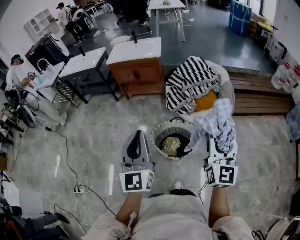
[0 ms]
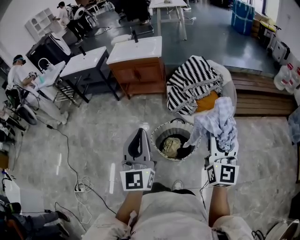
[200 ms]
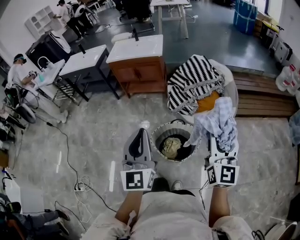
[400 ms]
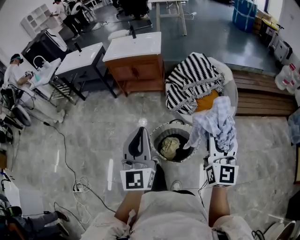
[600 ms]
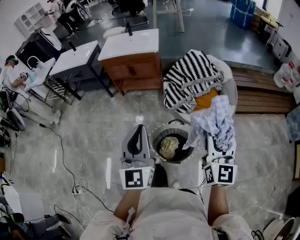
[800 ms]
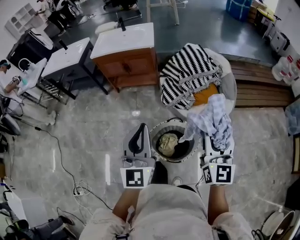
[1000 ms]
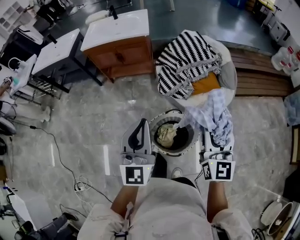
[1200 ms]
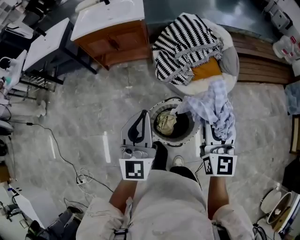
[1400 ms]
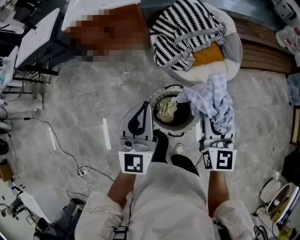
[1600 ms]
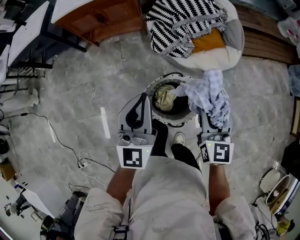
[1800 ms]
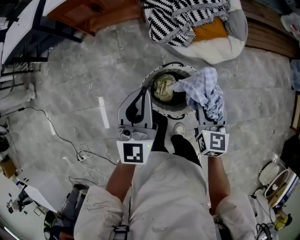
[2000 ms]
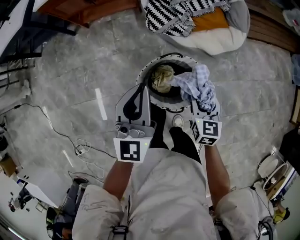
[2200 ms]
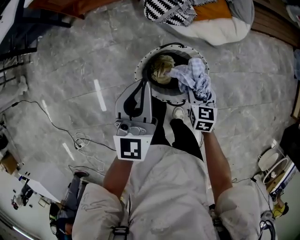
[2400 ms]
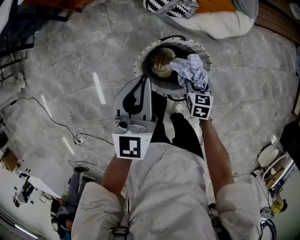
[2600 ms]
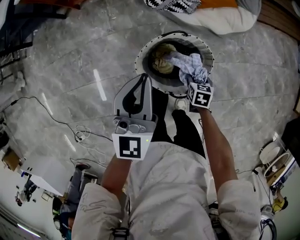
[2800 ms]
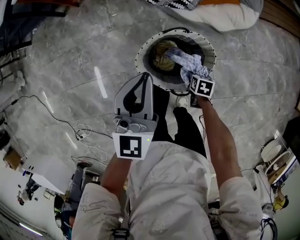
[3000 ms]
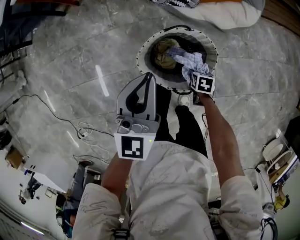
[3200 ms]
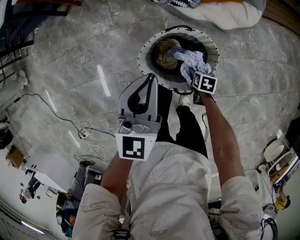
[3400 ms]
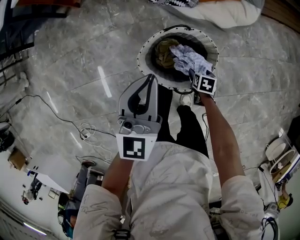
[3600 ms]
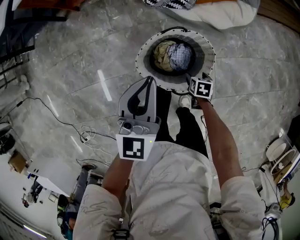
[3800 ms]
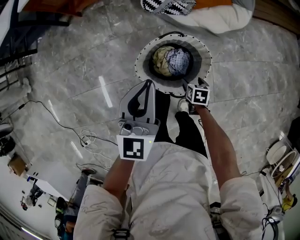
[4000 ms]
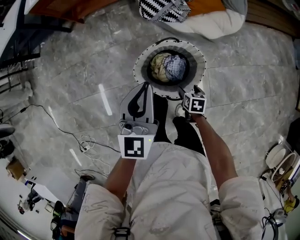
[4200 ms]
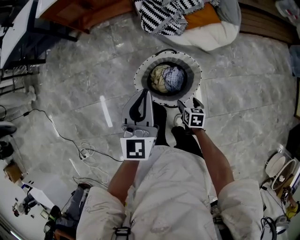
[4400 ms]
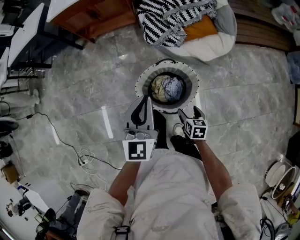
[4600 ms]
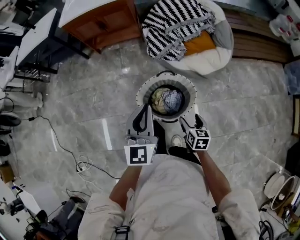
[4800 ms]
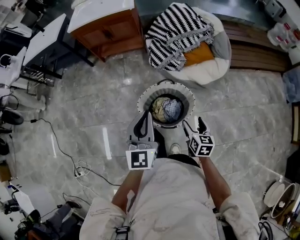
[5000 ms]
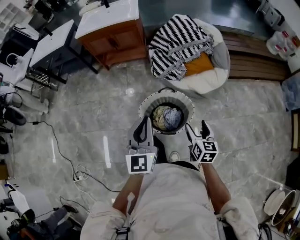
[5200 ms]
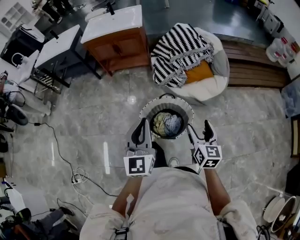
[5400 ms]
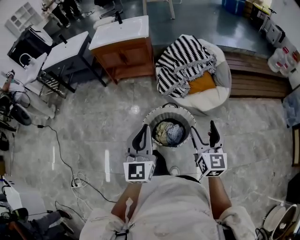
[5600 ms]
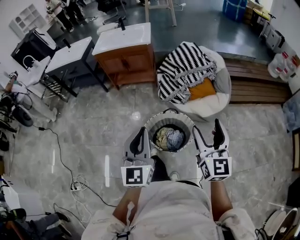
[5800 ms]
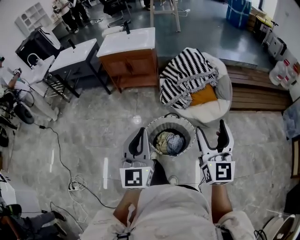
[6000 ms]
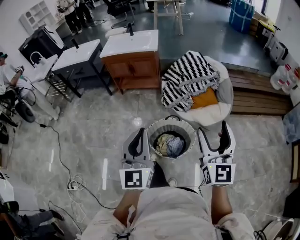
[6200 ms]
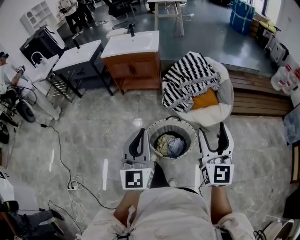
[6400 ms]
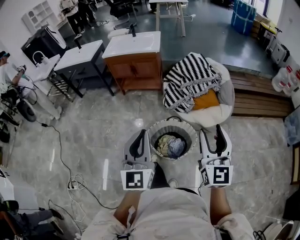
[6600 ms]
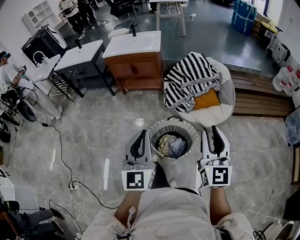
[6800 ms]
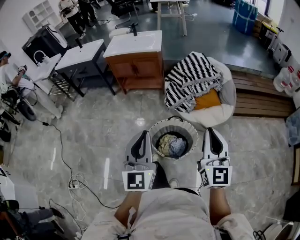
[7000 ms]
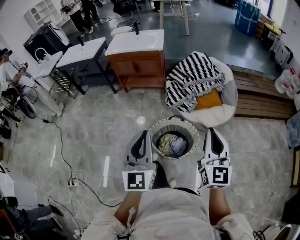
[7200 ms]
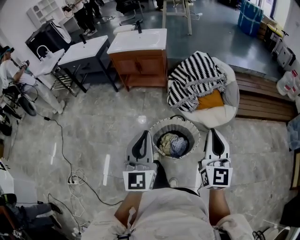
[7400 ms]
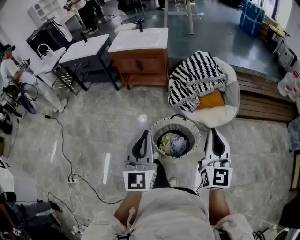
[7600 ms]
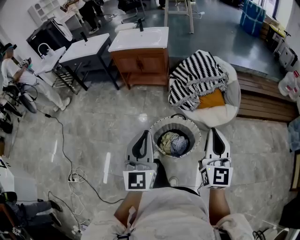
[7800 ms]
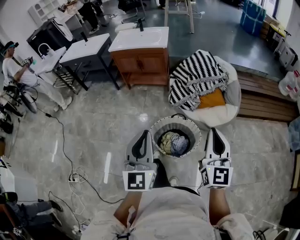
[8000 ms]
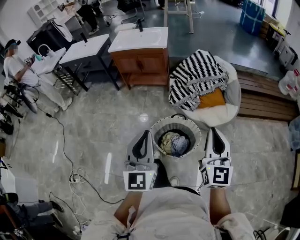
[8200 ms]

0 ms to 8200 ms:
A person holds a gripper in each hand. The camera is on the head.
0 ms to 1600 ms: The grippers both shift forward and downward by about 30 cm.
1600 ms to 3200 ms: The right gripper heads downward, covering approximately 50 cm, and tilts its fingers approximately 70 degrees downward. Meanwhile the left gripper is displaced downward by about 20 cm.
3200 ms to 5000 ms: The right gripper moves upward, some 30 cm, and points its fingers approximately 40 degrees further upward, while the left gripper shifts by approximately 20 cm.
5000 ms to 6600 ms: The left gripper moves upward and backward, approximately 20 cm. Meanwhile the right gripper moves upward, approximately 35 cm, and tilts its fingers some 40 degrees upward.
6600 ms to 8200 ms: The right gripper closes up.

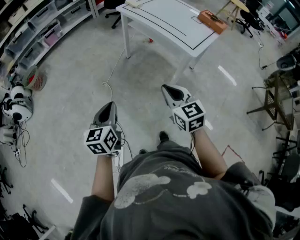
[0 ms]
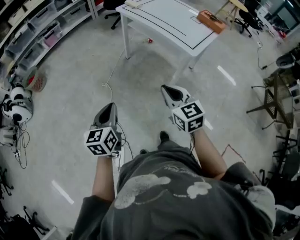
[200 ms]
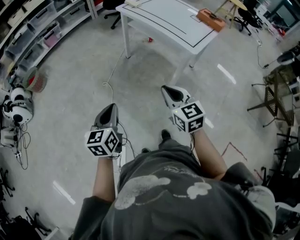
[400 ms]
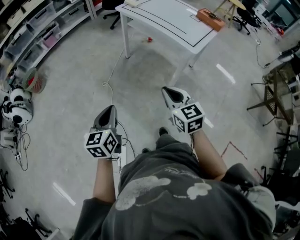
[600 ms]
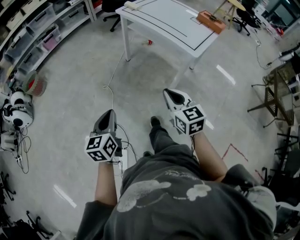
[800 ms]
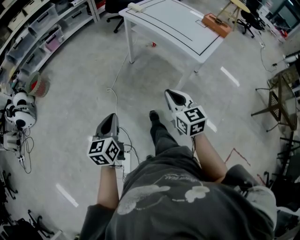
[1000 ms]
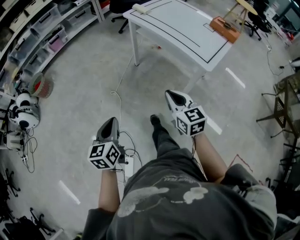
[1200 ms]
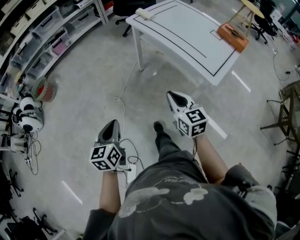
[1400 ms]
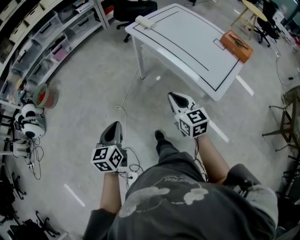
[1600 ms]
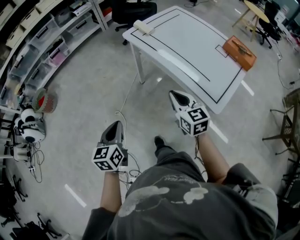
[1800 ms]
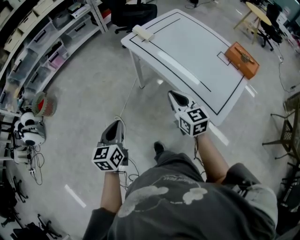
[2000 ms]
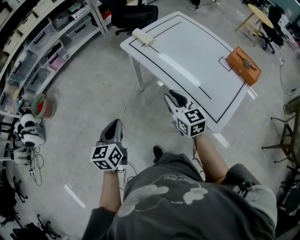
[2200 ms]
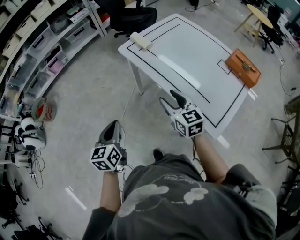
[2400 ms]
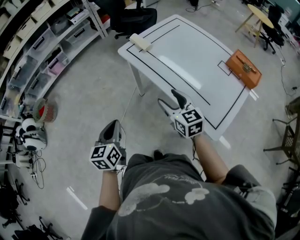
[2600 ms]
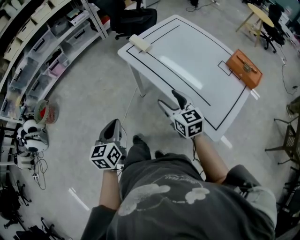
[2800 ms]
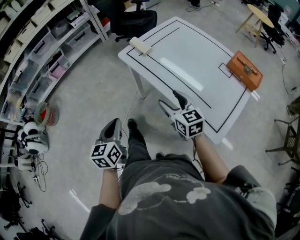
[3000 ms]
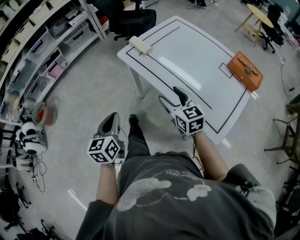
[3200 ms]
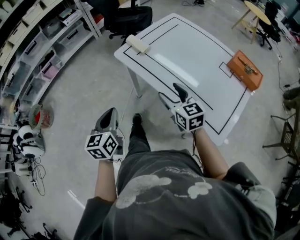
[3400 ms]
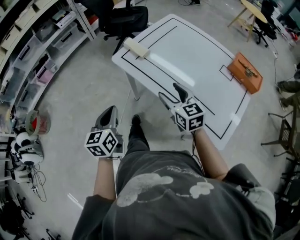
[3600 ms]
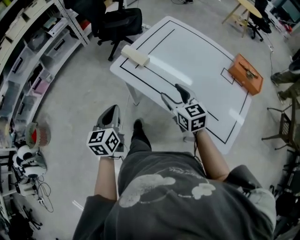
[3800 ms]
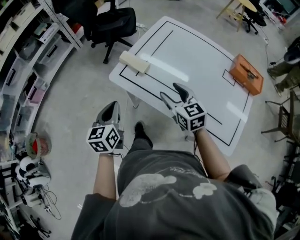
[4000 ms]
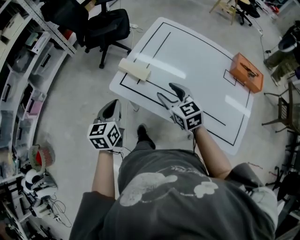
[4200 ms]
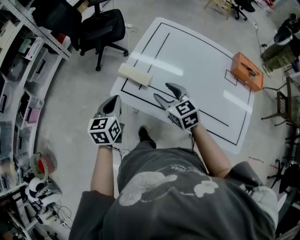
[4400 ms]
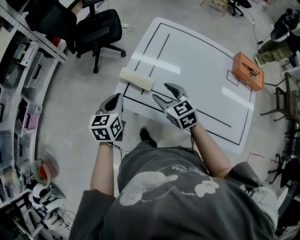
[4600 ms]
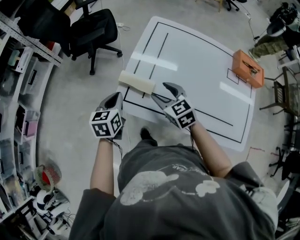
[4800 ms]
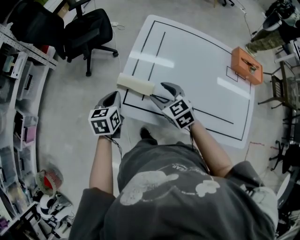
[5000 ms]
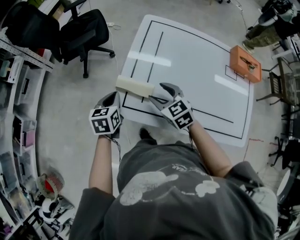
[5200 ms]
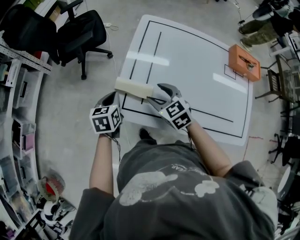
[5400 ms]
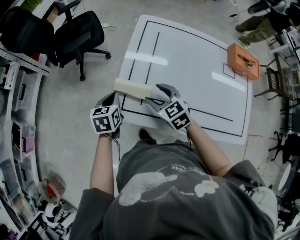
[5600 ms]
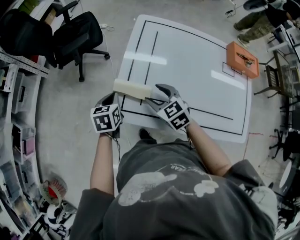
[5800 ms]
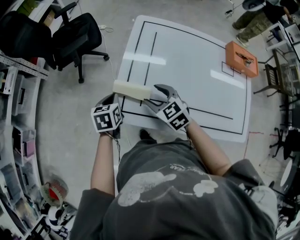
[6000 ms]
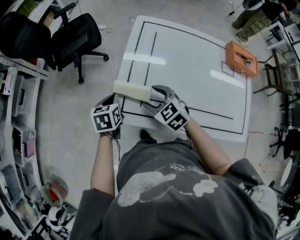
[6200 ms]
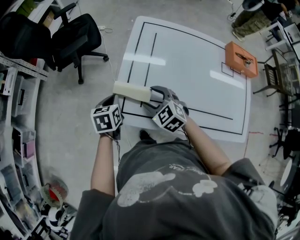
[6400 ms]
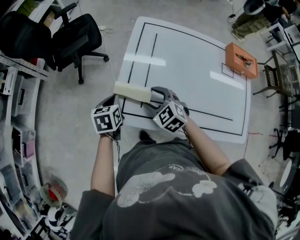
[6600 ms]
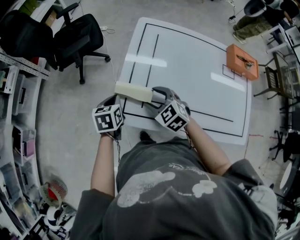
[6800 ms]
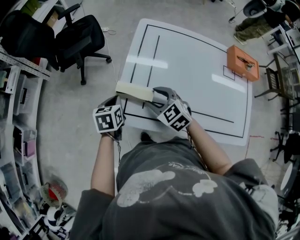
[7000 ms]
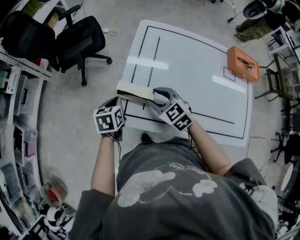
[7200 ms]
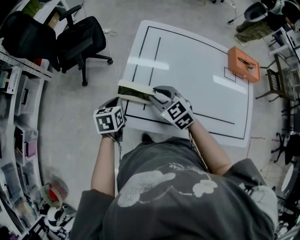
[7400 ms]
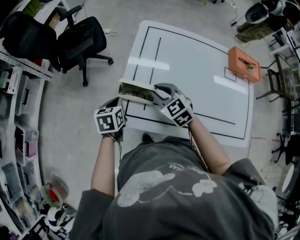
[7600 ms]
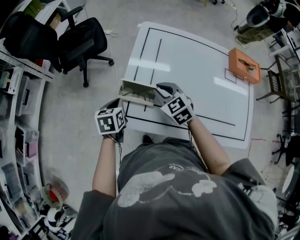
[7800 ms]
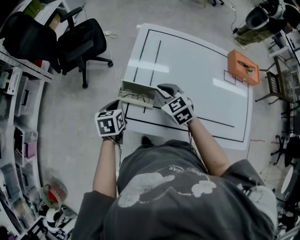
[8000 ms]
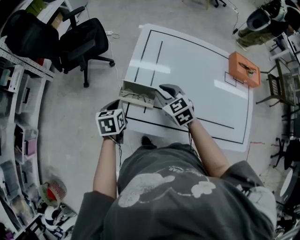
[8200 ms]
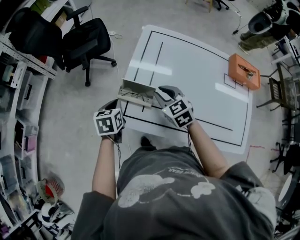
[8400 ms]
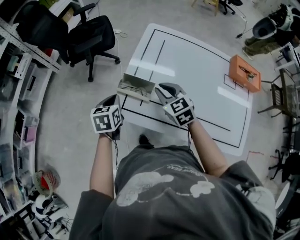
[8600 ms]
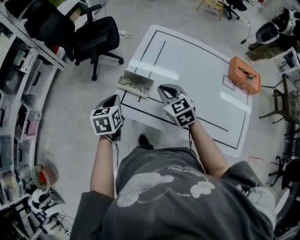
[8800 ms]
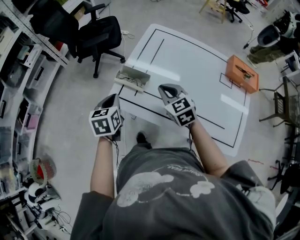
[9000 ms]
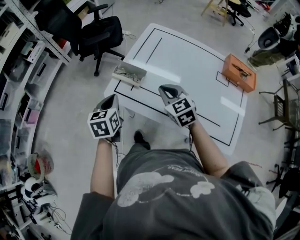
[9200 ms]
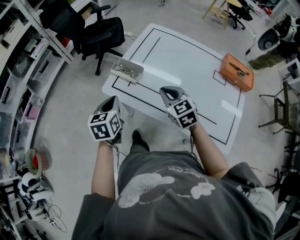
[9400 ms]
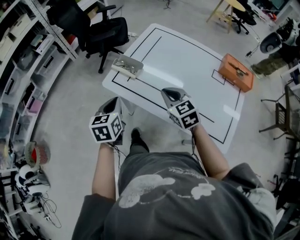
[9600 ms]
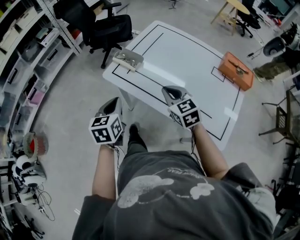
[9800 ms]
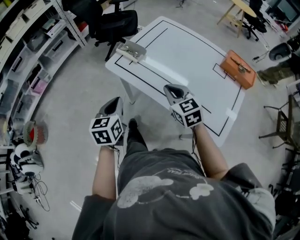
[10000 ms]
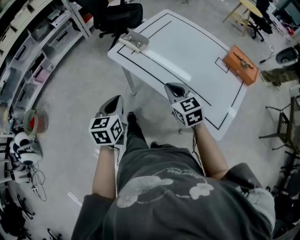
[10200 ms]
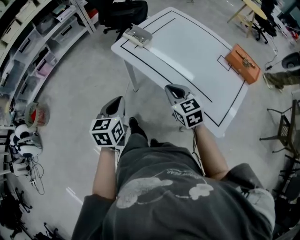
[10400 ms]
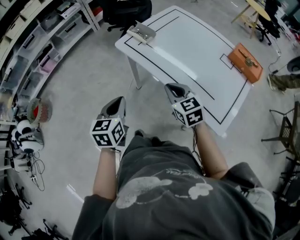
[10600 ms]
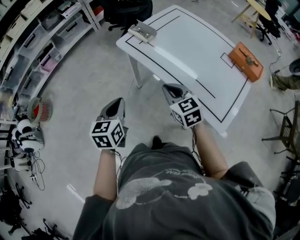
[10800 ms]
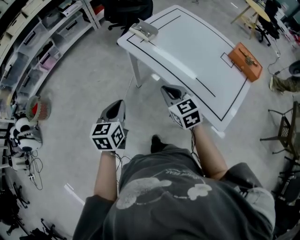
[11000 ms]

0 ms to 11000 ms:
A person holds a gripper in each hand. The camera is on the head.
0 ms to 1600 ms: Both grippers move forward, roughly 25 cm.
1600 ms to 3200 ms: The grippers both shift forward by approximately 25 cm. The right gripper opens.
3200 ms to 4800 ms: The right gripper shifts by approximately 30 cm, and rotates about 20 degrees, while the left gripper changes place by some 50 cm, and turns by some 30 degrees.
4800 ms to 6200 ms: The left gripper travels downward and forward by roughly 10 cm.
6200 ms to 7800 ms: The right gripper changes place by about 5 cm, and closes.
7800 ms to 9400 ms: The right gripper is displaced backward, to the right and upward by about 20 cm. Meanwhile the left gripper moves backward and upward, approximately 20 cm, and changes its angle by about 20 degrees.
9400 ms to 11000 ms: Both grippers move backward, approximately 25 cm.

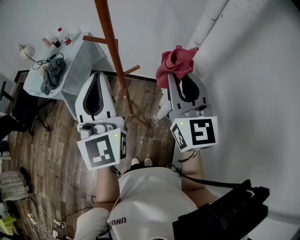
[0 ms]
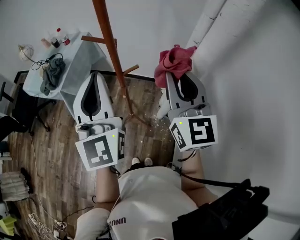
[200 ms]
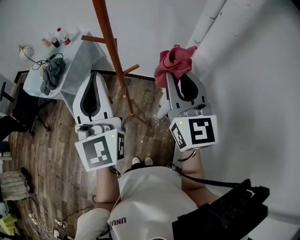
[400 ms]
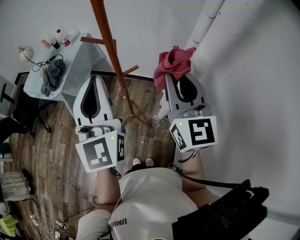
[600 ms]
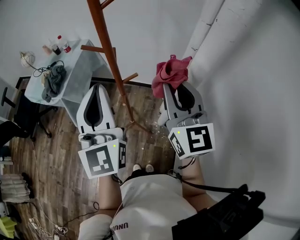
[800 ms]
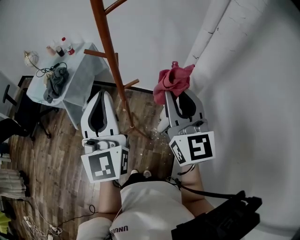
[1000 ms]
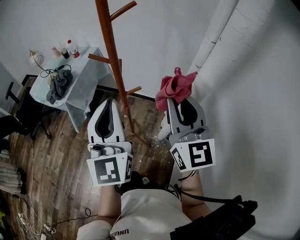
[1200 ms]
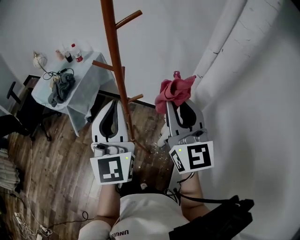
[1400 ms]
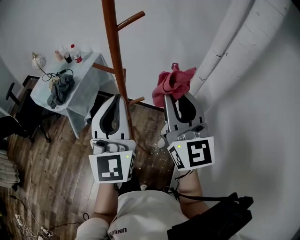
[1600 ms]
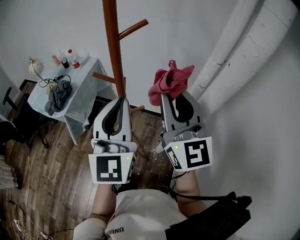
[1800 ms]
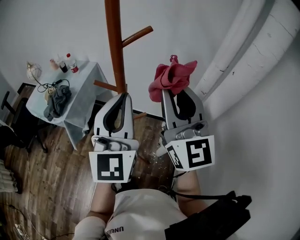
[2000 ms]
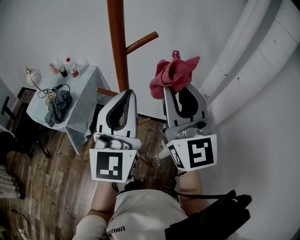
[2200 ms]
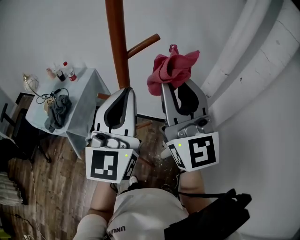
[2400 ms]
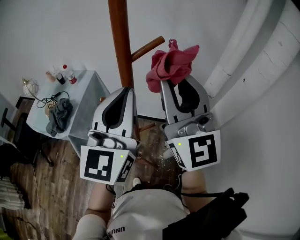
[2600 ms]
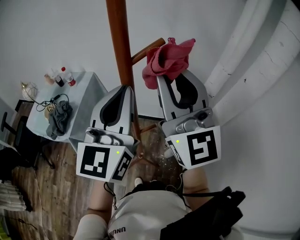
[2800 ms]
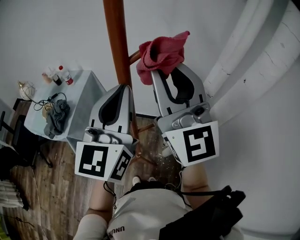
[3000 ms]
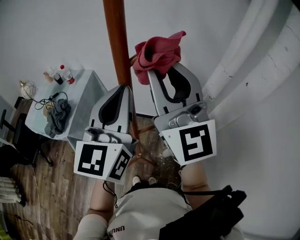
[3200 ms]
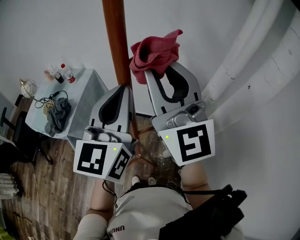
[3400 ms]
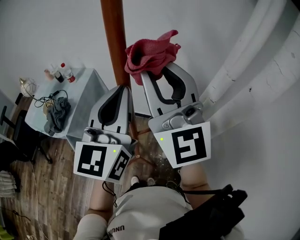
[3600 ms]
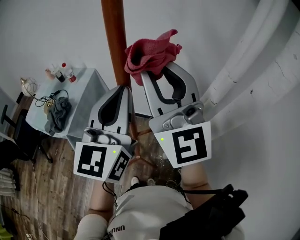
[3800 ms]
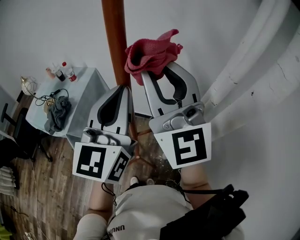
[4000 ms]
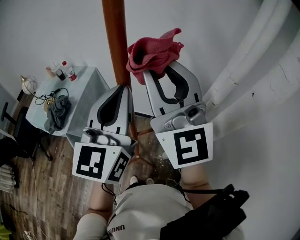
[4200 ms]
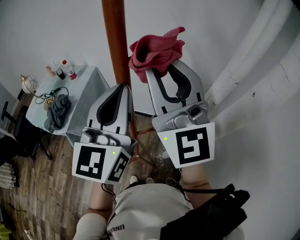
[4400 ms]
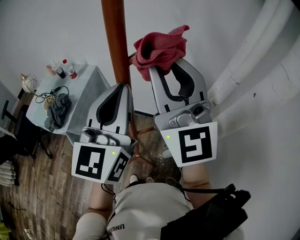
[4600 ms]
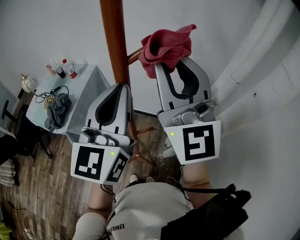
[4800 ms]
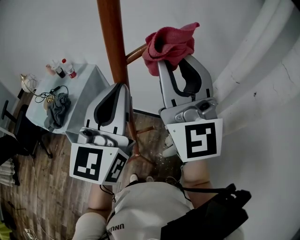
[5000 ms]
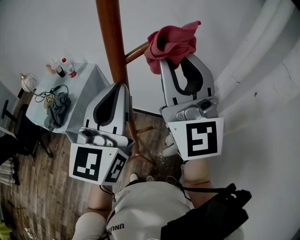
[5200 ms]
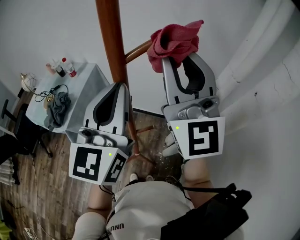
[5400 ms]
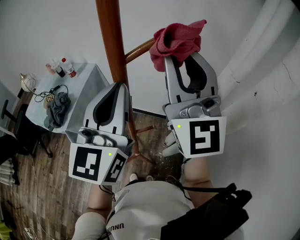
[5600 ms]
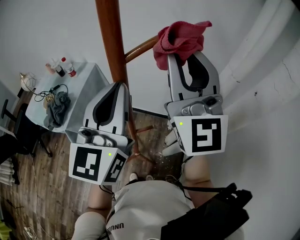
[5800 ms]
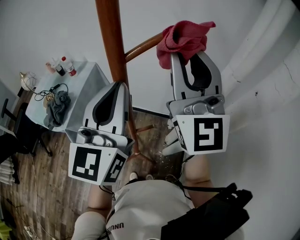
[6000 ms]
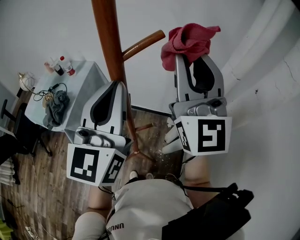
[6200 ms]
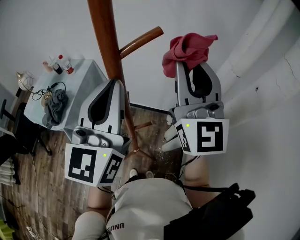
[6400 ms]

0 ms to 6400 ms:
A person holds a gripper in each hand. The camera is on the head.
0 ms to 1600 ms: The right gripper shifts by about 5 cm.
1600 ms to 3200 ms: The right gripper is displaced forward, upward and to the left by approximately 20 cm. The left gripper is displaced forward by some 15 cm, and swivels about 20 degrees.
3200 ms to 4800 ms: The grippers move only a little.
4800 ms to 6400 ms: The right gripper travels to the right by about 5 cm.
